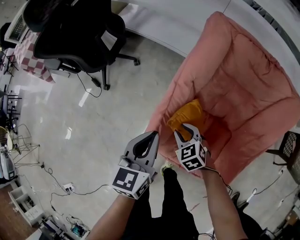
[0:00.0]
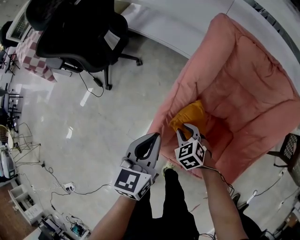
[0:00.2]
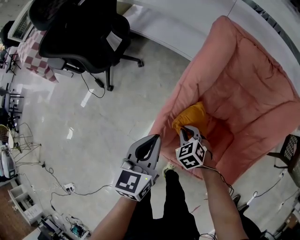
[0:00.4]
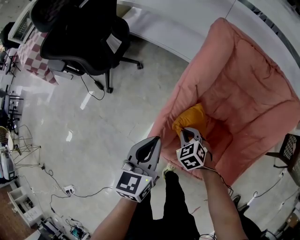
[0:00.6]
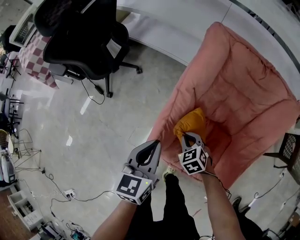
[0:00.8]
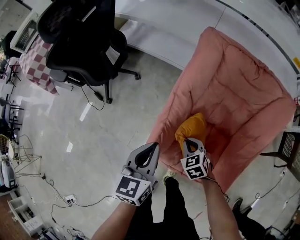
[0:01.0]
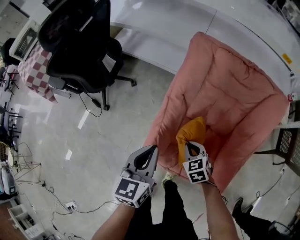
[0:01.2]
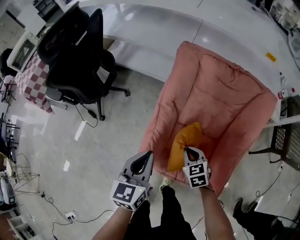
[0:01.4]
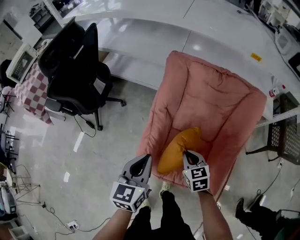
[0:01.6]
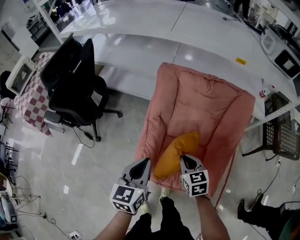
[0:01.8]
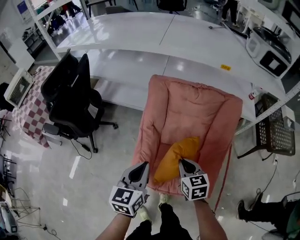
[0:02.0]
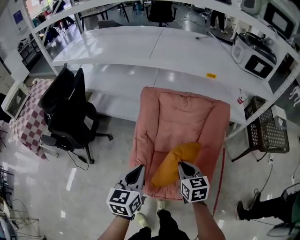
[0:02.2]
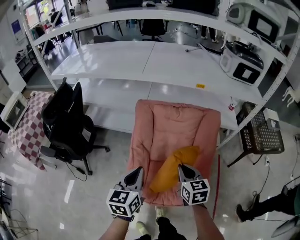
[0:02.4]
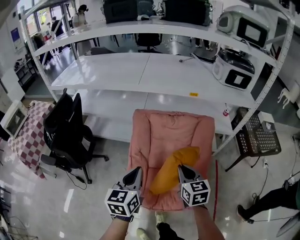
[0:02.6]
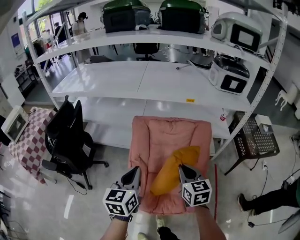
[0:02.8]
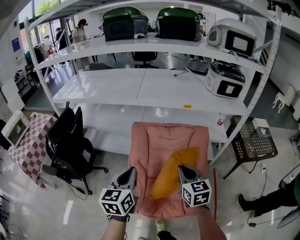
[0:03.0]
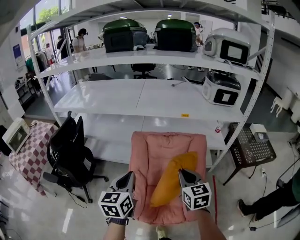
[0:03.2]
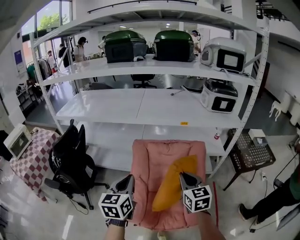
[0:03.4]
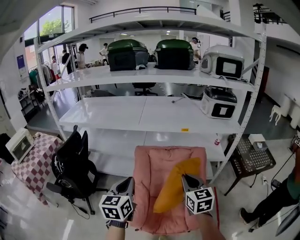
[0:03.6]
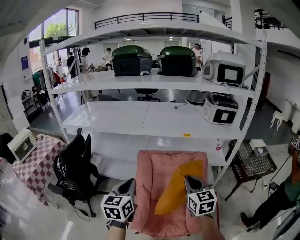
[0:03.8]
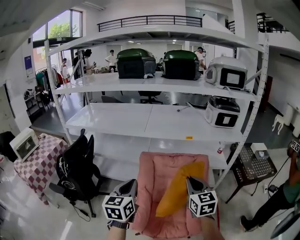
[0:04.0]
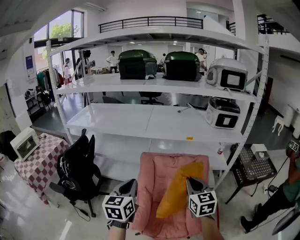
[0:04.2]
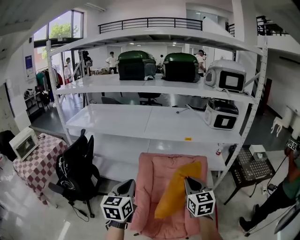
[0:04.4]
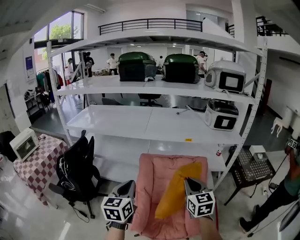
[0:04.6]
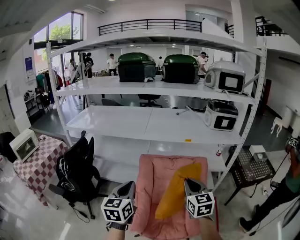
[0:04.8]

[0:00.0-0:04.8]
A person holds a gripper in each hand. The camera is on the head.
0:00.0 to 0:01.6: The left gripper shifts roughly 10 cm upward. The right gripper shifts approximately 15 cm upward and to the right, turns by approximately 30 degrees, and closes.
0:01.6 to 0:03.2: Both grippers travel together upward, roughly 30 cm. The right gripper rotates some 30 degrees.
0:03.2 to 0:04.8: Both grippers move upward, about 5 cm.

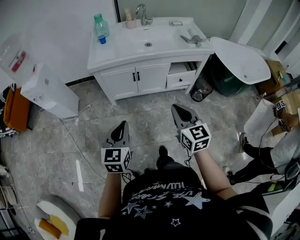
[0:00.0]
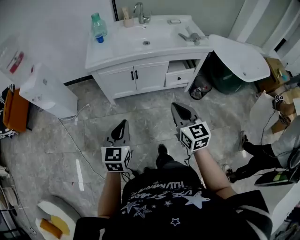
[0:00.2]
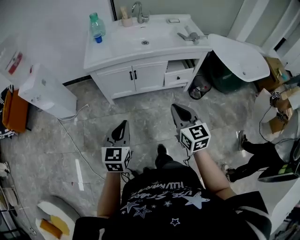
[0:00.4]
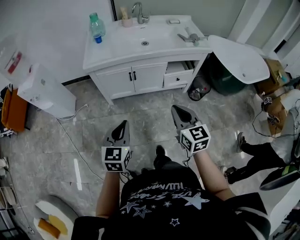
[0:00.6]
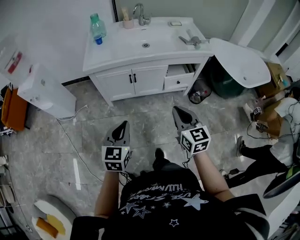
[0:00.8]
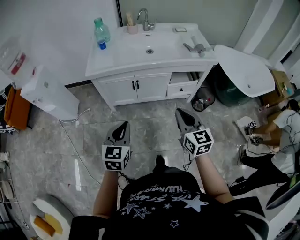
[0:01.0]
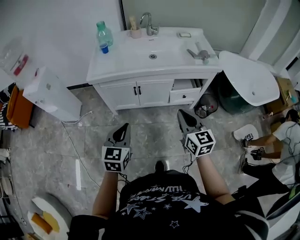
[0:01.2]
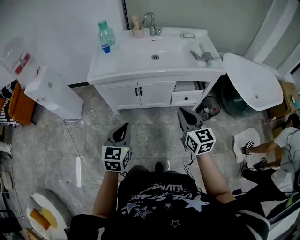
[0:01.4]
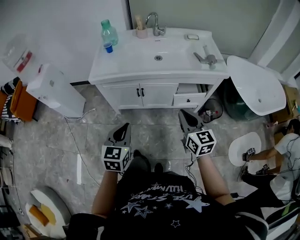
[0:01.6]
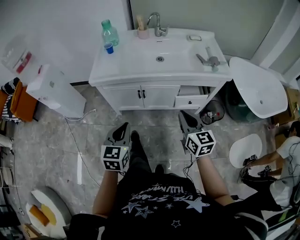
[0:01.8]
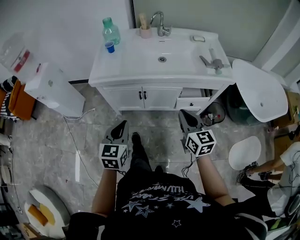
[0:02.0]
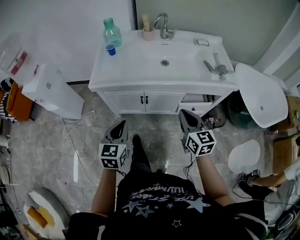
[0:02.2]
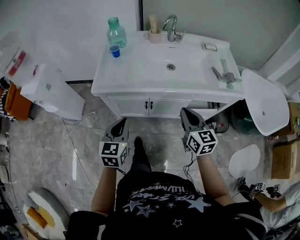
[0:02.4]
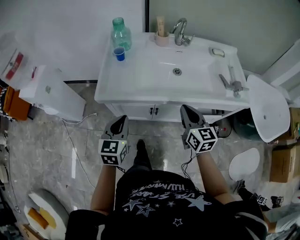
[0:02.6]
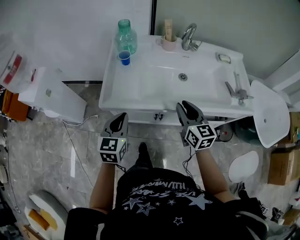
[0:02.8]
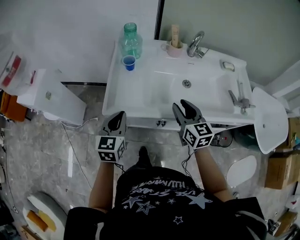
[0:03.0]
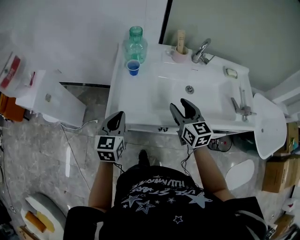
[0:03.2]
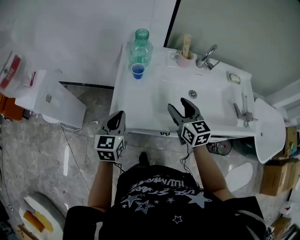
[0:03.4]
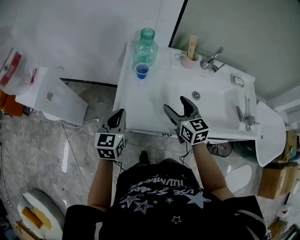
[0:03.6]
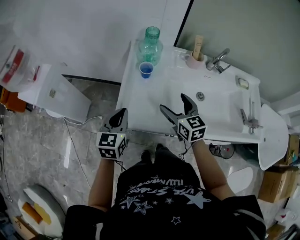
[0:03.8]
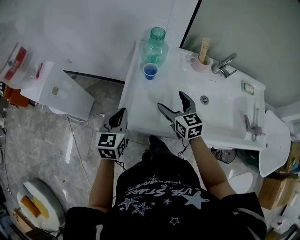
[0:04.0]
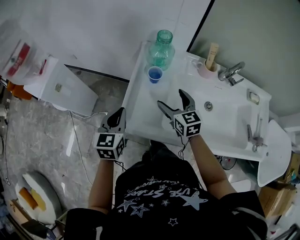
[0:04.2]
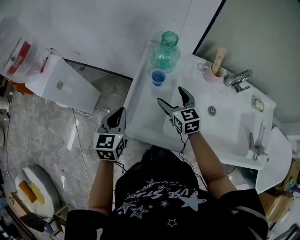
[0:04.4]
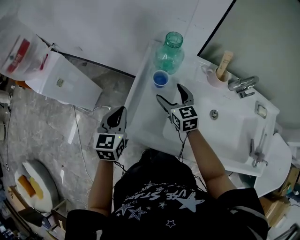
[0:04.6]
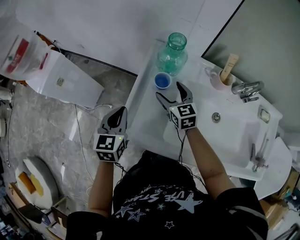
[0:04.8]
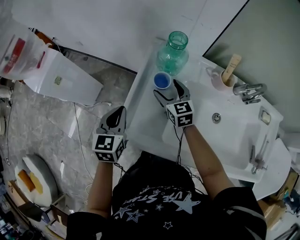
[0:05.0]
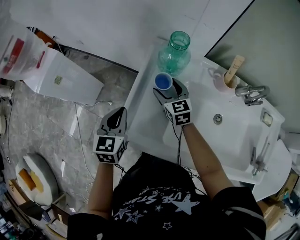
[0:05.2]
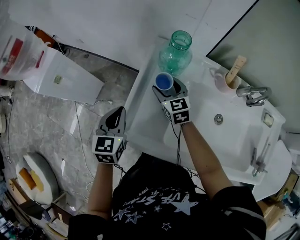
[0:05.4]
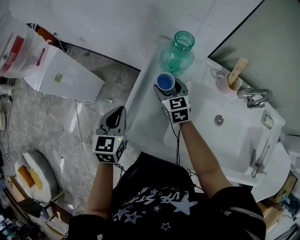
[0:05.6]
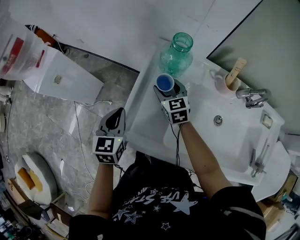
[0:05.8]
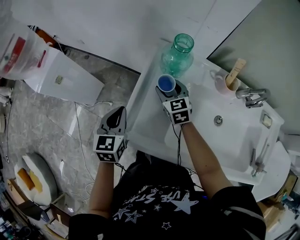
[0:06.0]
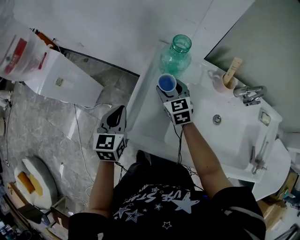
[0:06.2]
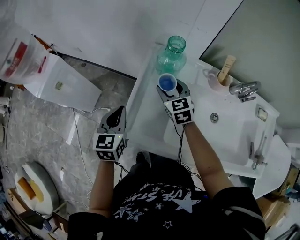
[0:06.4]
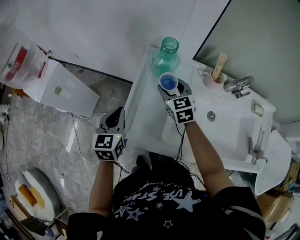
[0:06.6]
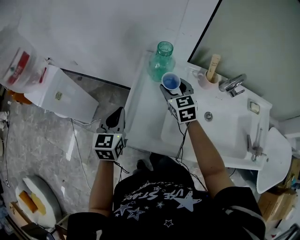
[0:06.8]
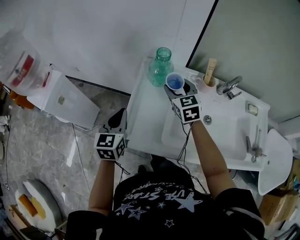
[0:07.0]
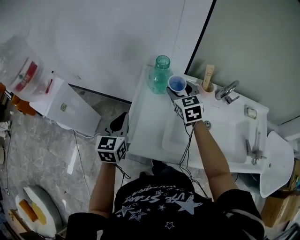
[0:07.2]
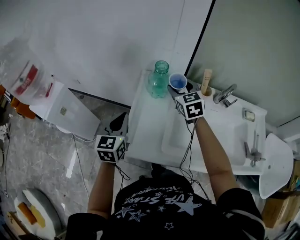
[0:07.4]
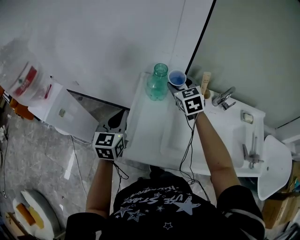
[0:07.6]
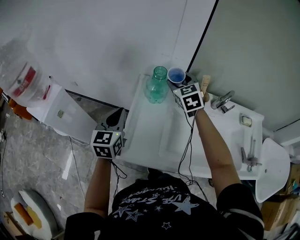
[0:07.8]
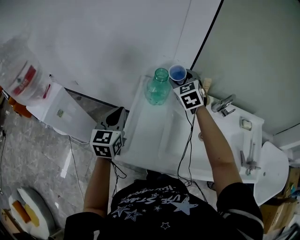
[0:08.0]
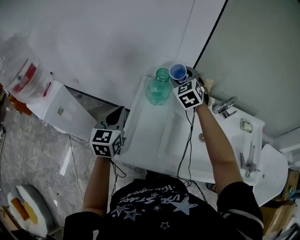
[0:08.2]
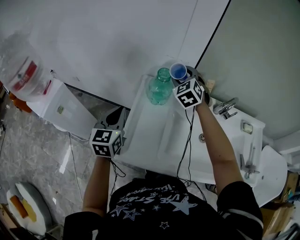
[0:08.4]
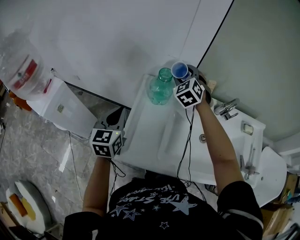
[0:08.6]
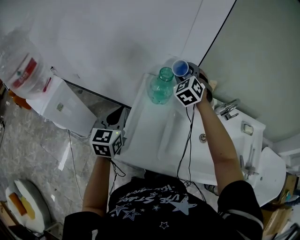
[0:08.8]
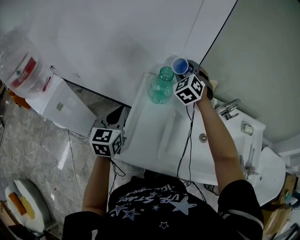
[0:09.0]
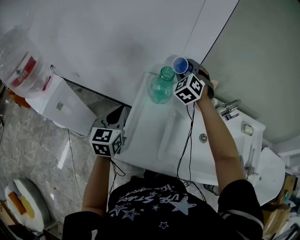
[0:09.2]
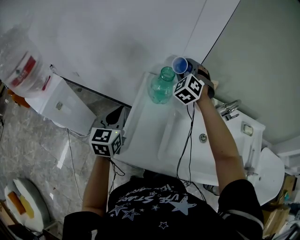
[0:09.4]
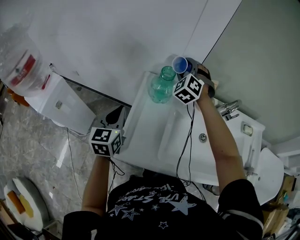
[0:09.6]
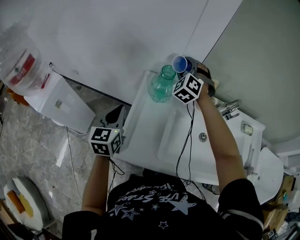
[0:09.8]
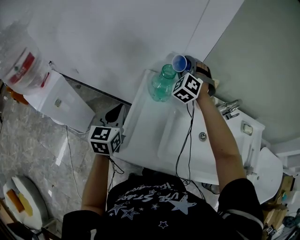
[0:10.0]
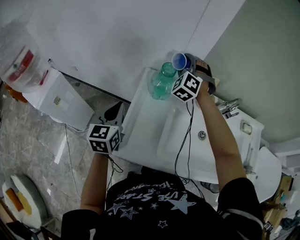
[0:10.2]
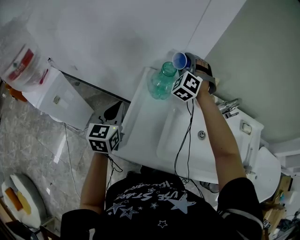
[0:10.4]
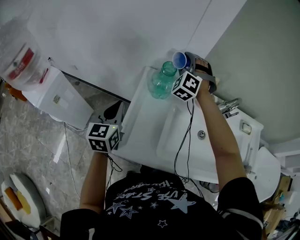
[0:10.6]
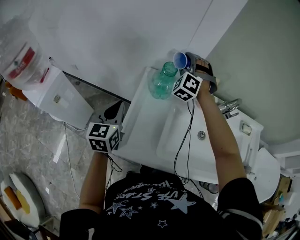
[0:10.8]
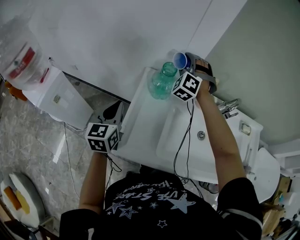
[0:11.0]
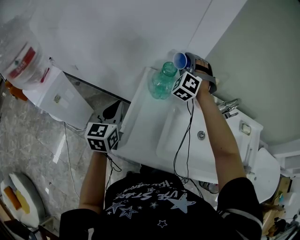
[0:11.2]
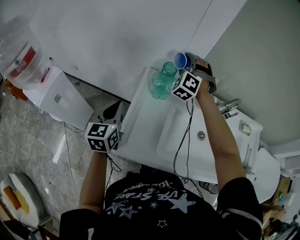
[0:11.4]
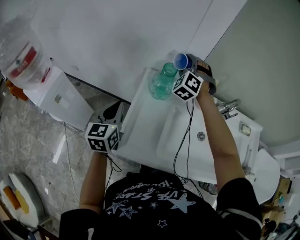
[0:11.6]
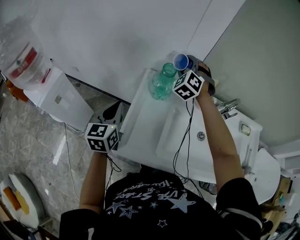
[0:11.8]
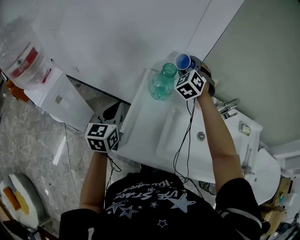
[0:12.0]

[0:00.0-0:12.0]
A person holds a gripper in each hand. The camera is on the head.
0:00.0 to 0:01.6: Both grippers move forward and to the right, about 20 cm.
0:01.6 to 0:03.0: Both grippers travel together forward and to the left, some 40 cm.
0:03.0 to 0:04.4: The right gripper heads forward and to the left, covering approximately 25 cm, changes its angle by about 20 degrees, and opens up. Meanwhile the left gripper moves forward and to the left, roughly 15 cm.
0:04.4 to 0:06.0: The left gripper ends up about 5 cm from where it was. The right gripper heads forward and downward, covering roughly 10 cm, and closes.
0:06.0 to 0:07.6: The left gripper travels upward by some 10 cm, while the right gripper heads upward and to the right, covering some 20 cm.
0:07.6 to 0:09.0: The right gripper travels forward by approximately 10 cm, and swivels approximately 40 degrees.
0:09.0 to 0:10.4: The right gripper changes its angle by some 20 degrees.
0:10.4 to 0:12.0: There are only small adjustments of the grippers.

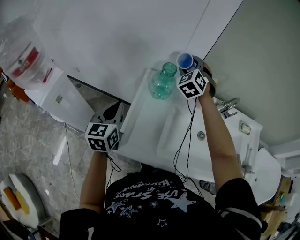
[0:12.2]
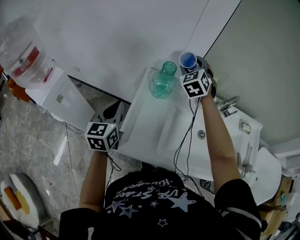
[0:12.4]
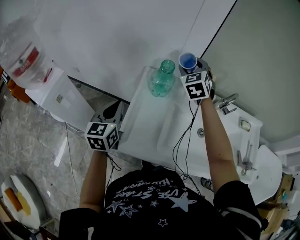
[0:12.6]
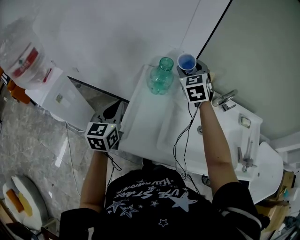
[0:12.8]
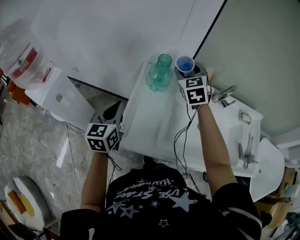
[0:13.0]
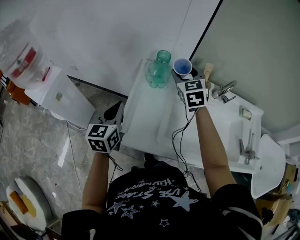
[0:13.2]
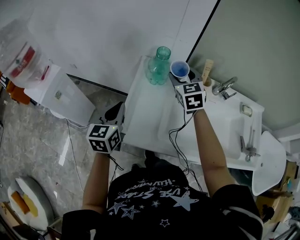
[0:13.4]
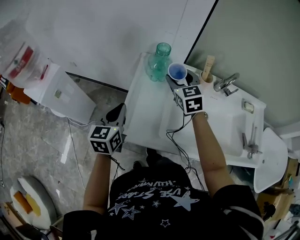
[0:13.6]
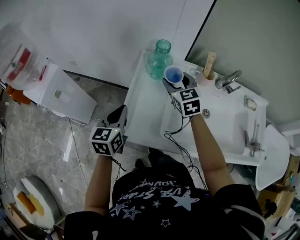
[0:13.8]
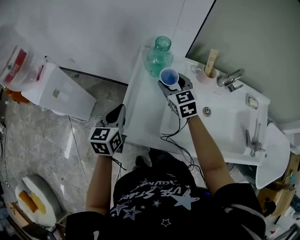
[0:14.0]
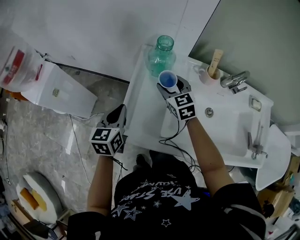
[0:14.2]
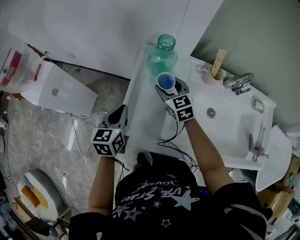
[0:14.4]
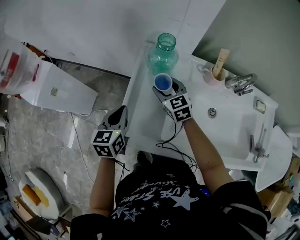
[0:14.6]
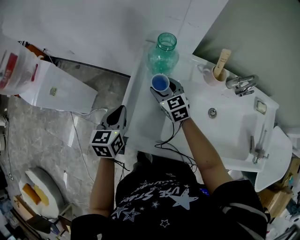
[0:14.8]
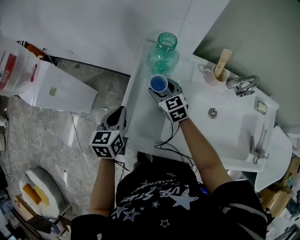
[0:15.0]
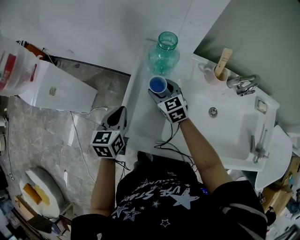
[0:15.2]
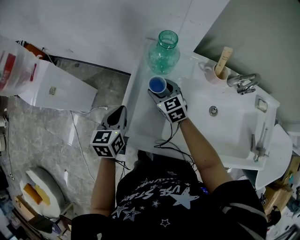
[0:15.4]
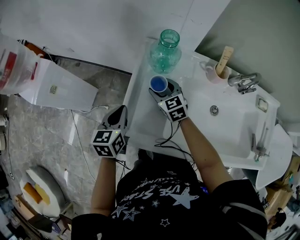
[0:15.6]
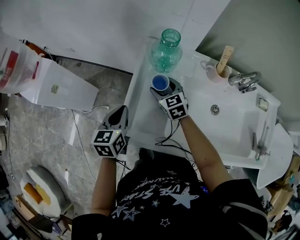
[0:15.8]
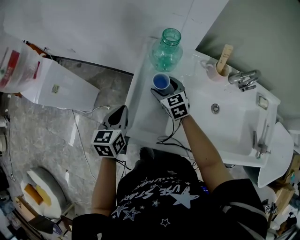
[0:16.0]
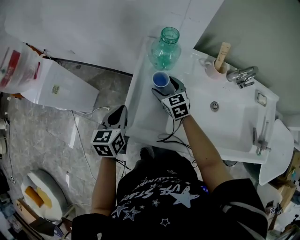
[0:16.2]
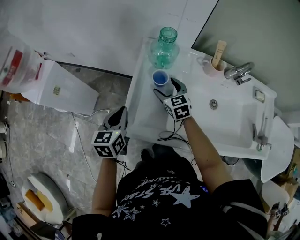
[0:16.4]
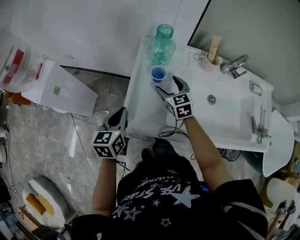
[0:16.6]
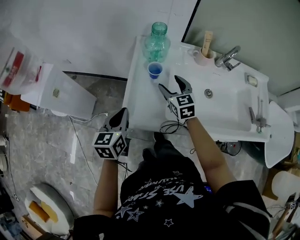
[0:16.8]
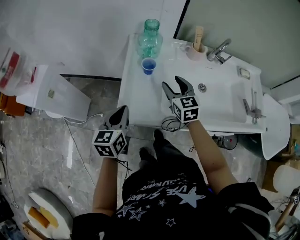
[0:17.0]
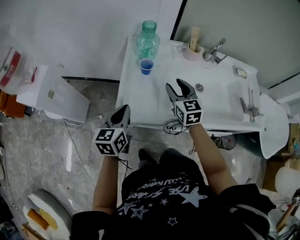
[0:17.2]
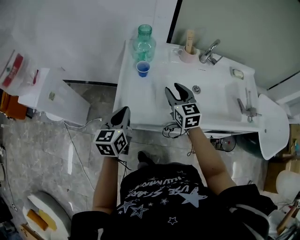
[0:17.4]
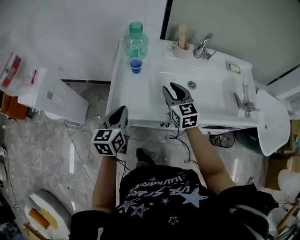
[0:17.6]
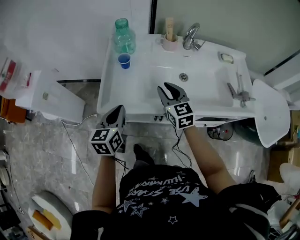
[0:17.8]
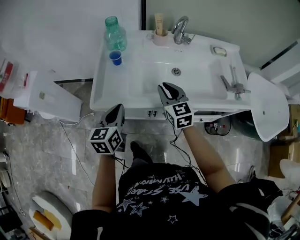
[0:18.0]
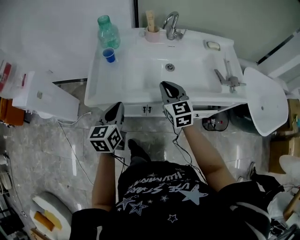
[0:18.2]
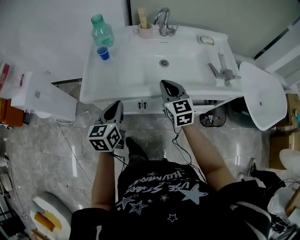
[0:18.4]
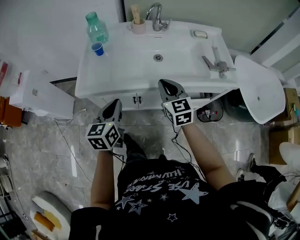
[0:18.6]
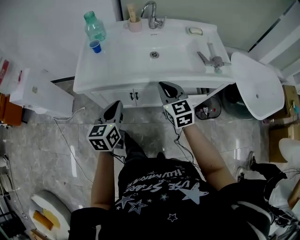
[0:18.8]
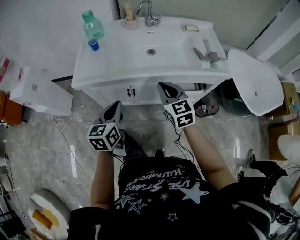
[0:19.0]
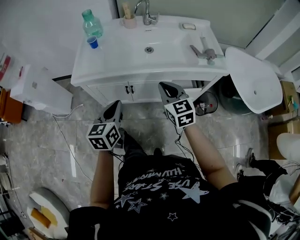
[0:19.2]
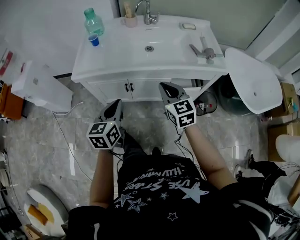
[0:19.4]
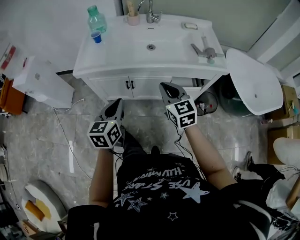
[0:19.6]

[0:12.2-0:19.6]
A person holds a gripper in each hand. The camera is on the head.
0:12.2 to 0:13.6: The right gripper moves backward and downward, some 15 cm, and changes its angle by about 40 degrees, while the left gripper shifts about 5 cm backward.
0:13.6 to 0:15.2: The left gripper travels downward by roughly 10 cm. Meanwhile the right gripper is displaced downward and to the left by about 20 cm.
0:15.2 to 0:16.6: Both grippers travel together backward, about 5 cm.
0:16.6 to 0:18.2: The right gripper heads backward and to the right, covering some 30 cm, and closes up. Meanwhile the left gripper travels to the right and backward by approximately 25 cm.
0:18.2 to 0:19.6: Both grippers travel together backward and to the right, roughly 25 cm.
